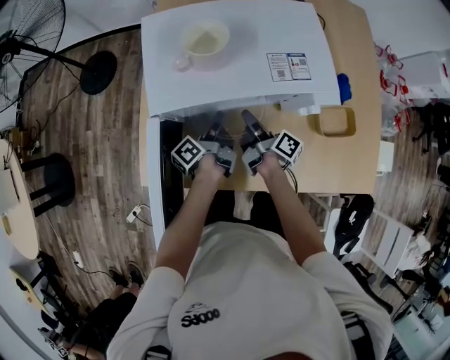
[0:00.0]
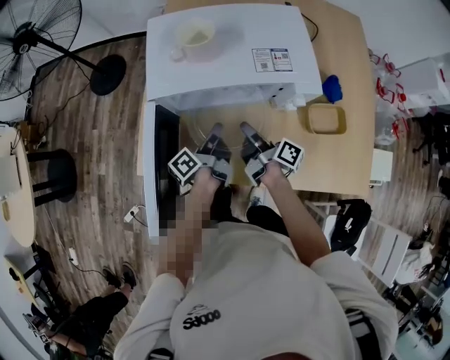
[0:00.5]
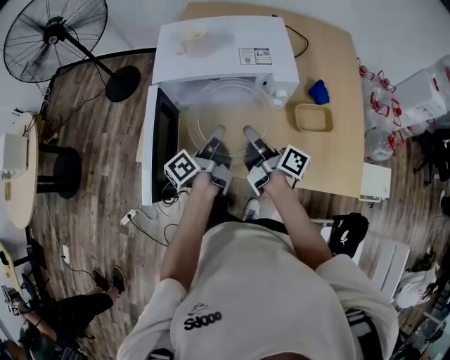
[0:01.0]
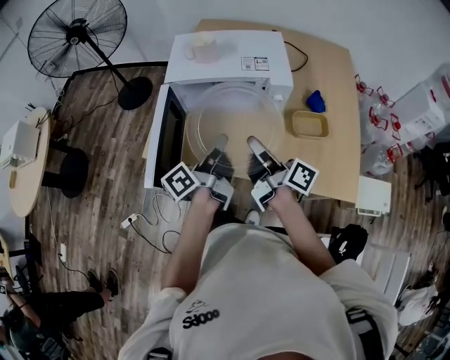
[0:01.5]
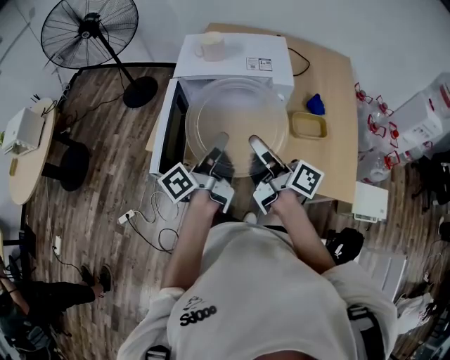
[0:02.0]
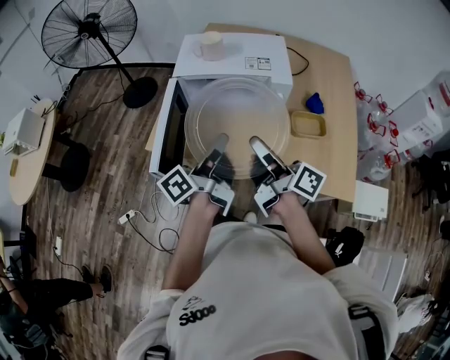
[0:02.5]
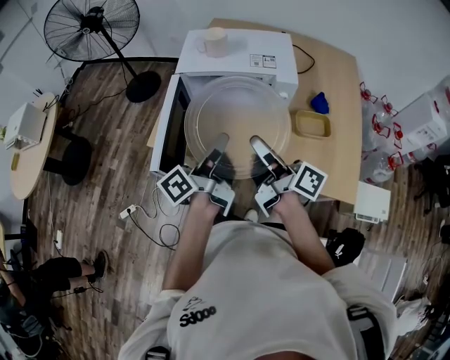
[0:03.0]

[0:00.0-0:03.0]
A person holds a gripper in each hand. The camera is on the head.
0:00.0 to 0:01.5: The grippers both shift backward and upward by roughly 35 cm. The right gripper swivels roughly 30 degrees. The left gripper changes its angle by approximately 20 degrees.
0:01.5 to 0:03.0: The left gripper travels backward by about 5 cm. Meanwhile the right gripper changes place by roughly 5 cm.

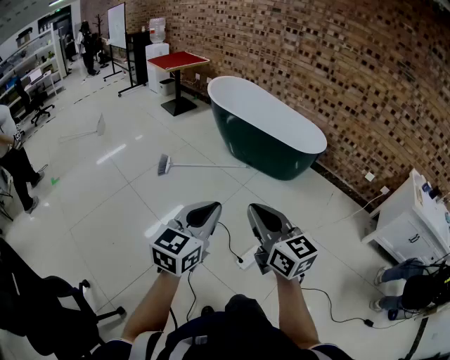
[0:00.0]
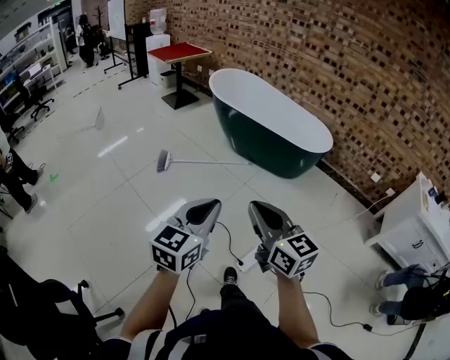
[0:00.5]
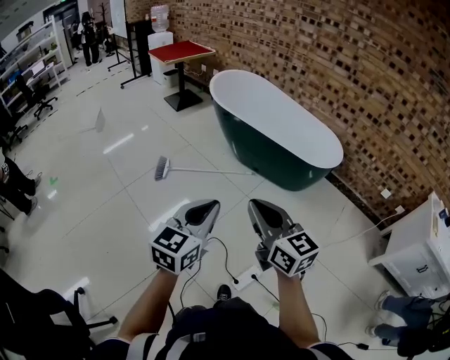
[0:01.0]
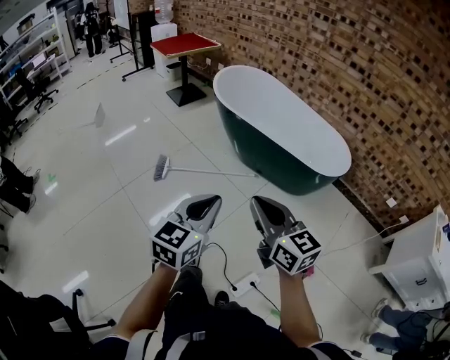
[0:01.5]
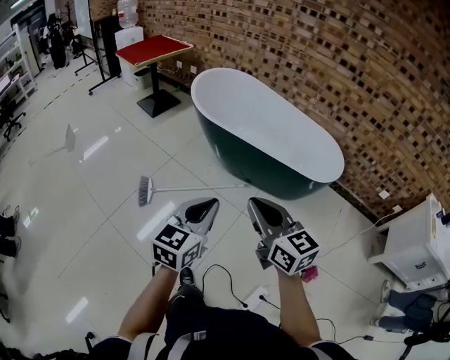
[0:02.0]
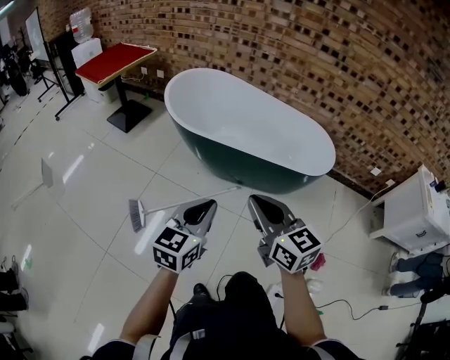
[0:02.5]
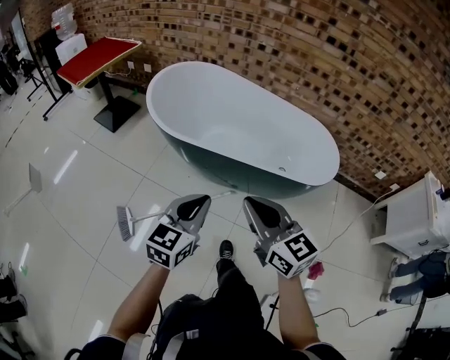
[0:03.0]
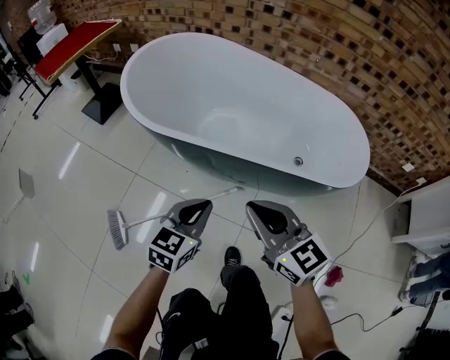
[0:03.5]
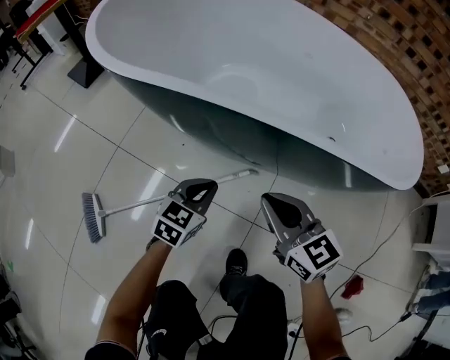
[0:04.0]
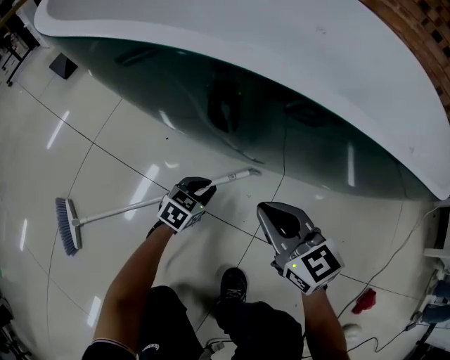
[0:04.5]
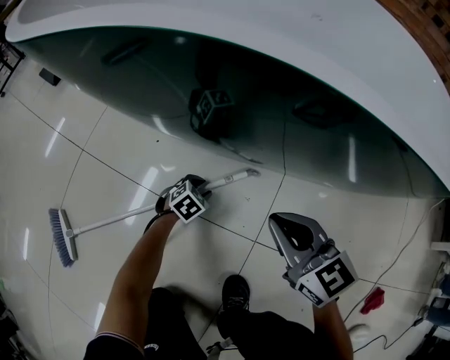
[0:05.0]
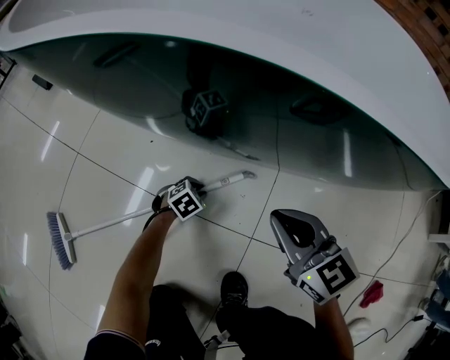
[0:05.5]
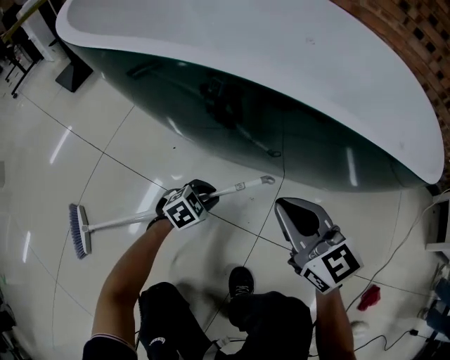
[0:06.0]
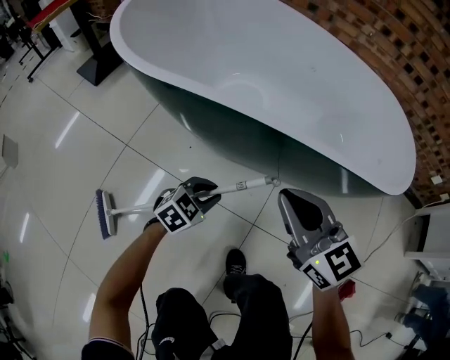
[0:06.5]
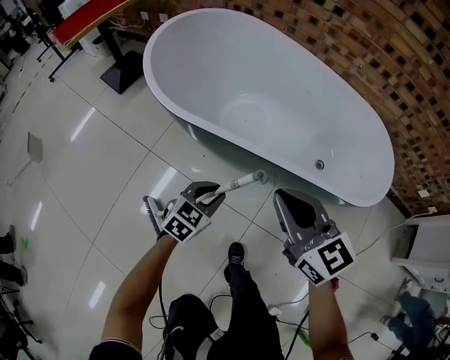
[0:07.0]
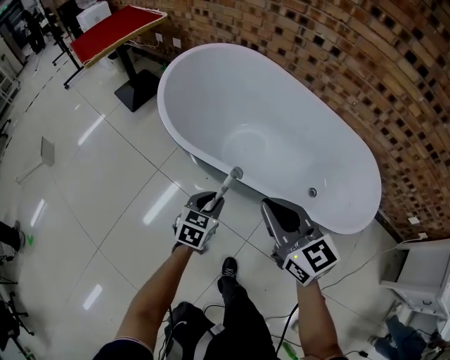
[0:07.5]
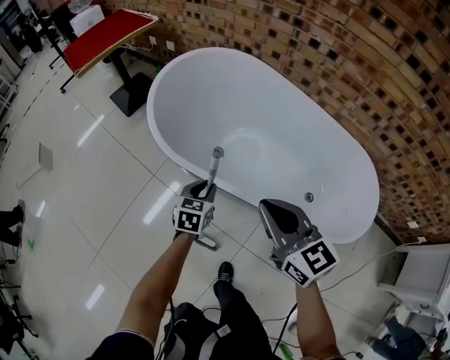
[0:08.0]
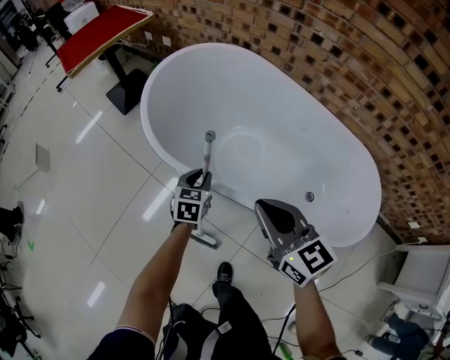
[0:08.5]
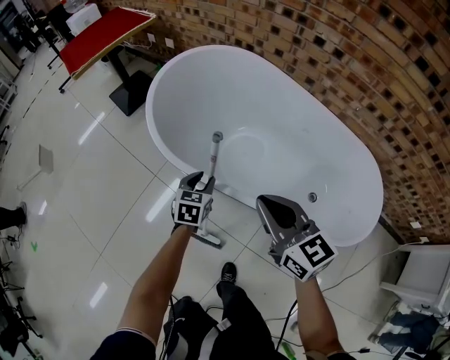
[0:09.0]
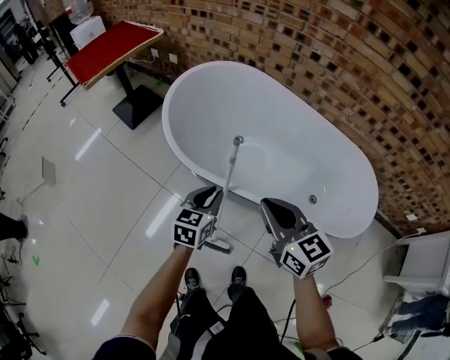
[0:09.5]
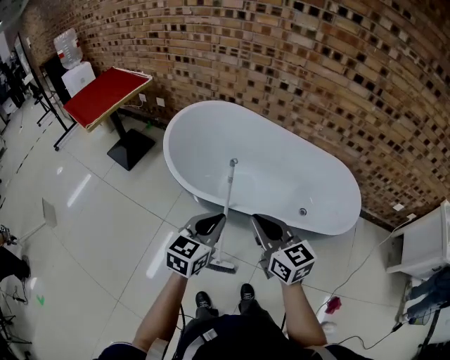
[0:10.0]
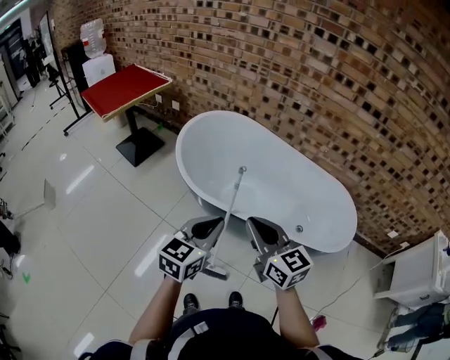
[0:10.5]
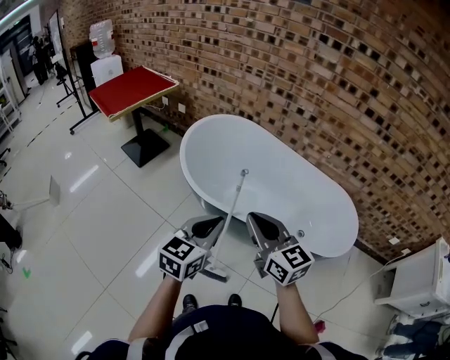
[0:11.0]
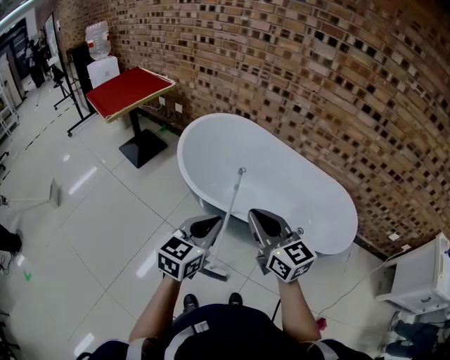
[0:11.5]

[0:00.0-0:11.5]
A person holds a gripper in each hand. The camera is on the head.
0:00.0 to 0:02.0: Both grippers are carried forward, roughly 50 cm.
0:02.0 to 0:04.0: Both grippers are carried forward, about 40 cm. Both grippers travel together downward, about 60 cm. The left gripper changes its angle by about 30 degrees.
0:04.0 to 0:06.0: The right gripper heads downward, covering approximately 10 cm; the left gripper shifts about 25 cm downward, and rotates about 30 degrees.
0:06.0 to 0:07.5: The grippers both shift upward by some 50 cm. The left gripper rotates approximately 50 degrees.
0:07.5 to 0:09.5: The right gripper travels forward by about 5 cm, while the left gripper travels upward and forward by roughly 10 cm.
0:09.5 to 0:11.5: The left gripper travels upward and backward by approximately 25 cm, while the right gripper is displaced upward, backward and to the left by approximately 15 cm.

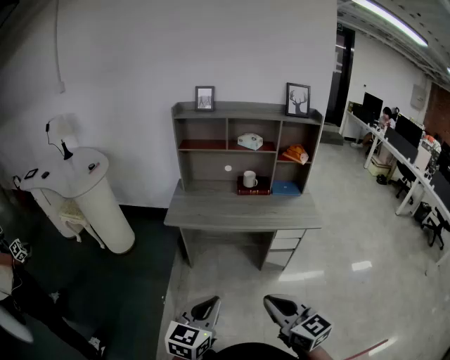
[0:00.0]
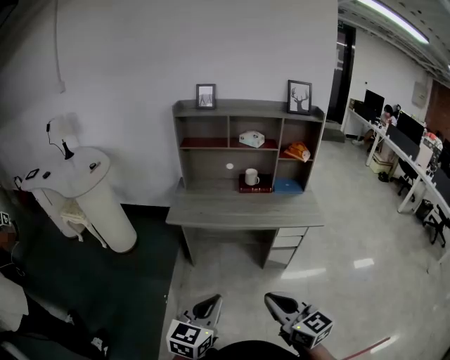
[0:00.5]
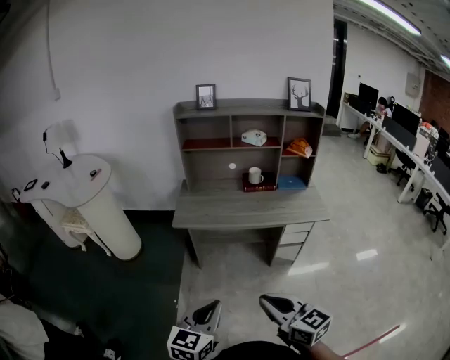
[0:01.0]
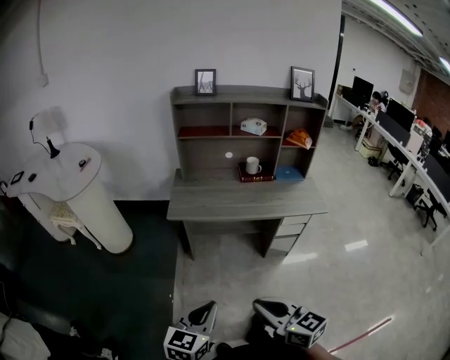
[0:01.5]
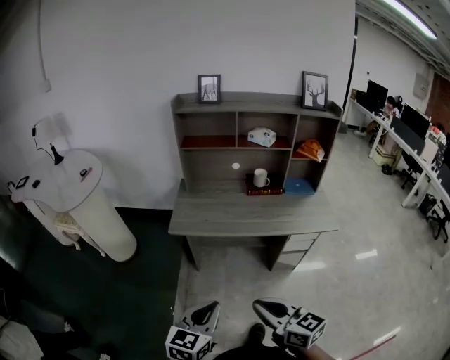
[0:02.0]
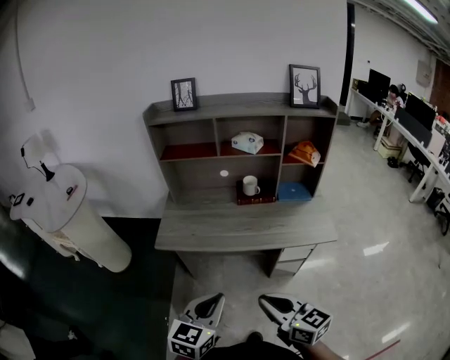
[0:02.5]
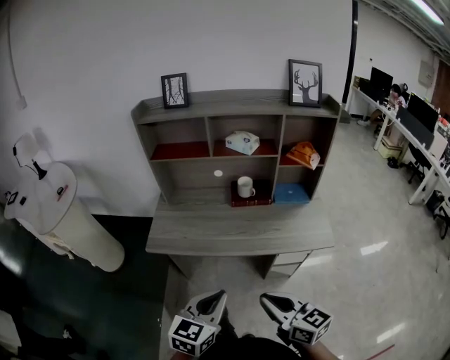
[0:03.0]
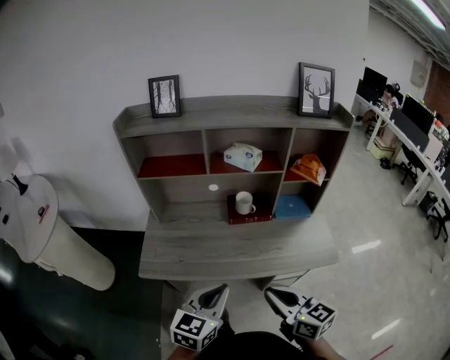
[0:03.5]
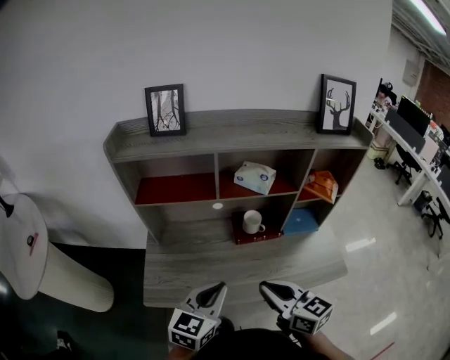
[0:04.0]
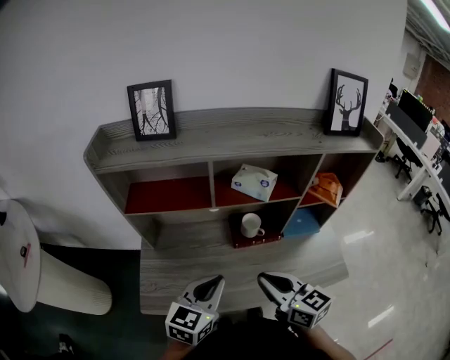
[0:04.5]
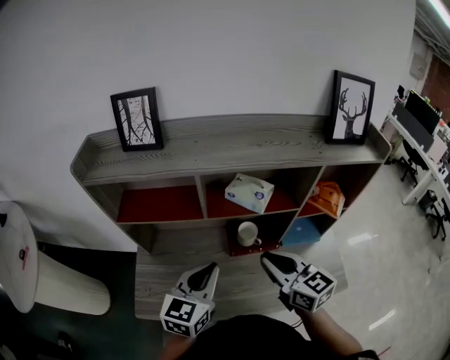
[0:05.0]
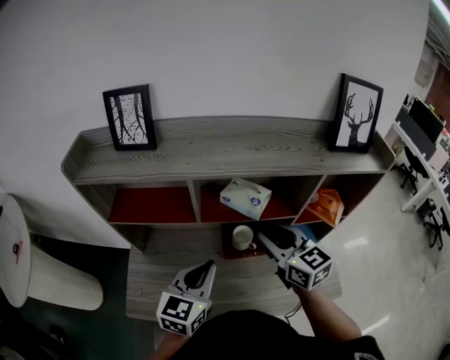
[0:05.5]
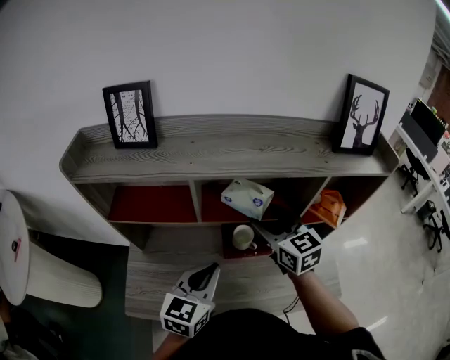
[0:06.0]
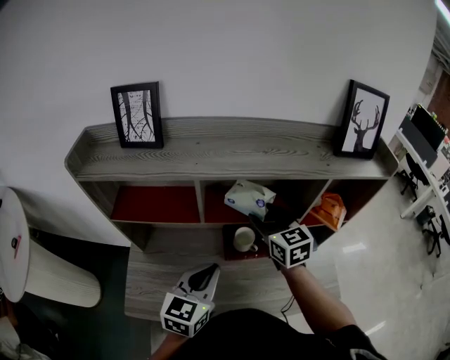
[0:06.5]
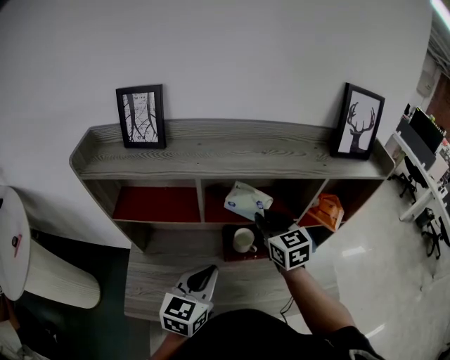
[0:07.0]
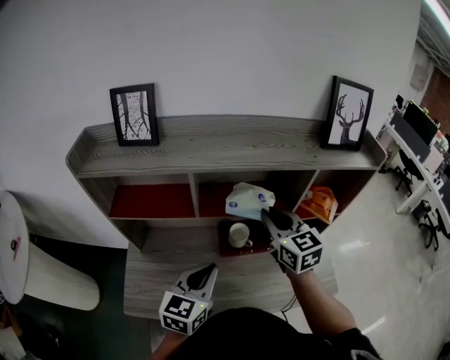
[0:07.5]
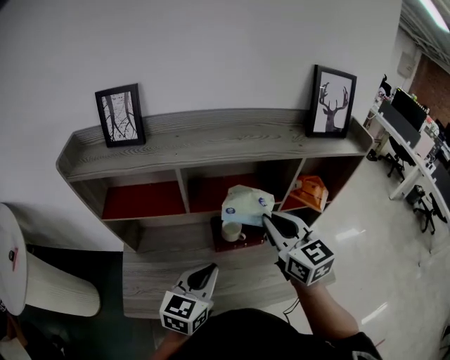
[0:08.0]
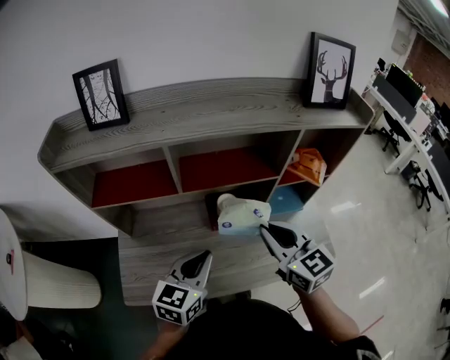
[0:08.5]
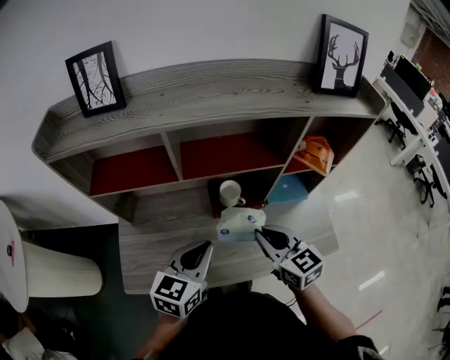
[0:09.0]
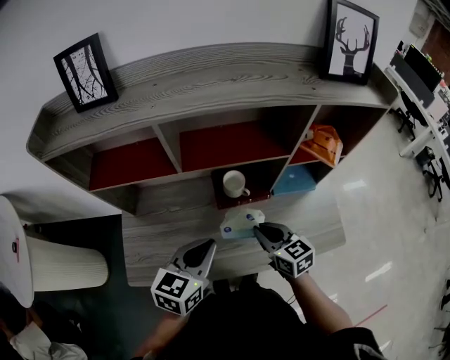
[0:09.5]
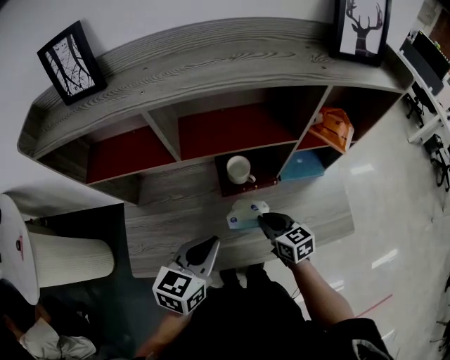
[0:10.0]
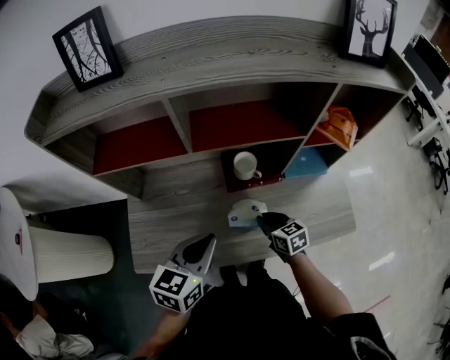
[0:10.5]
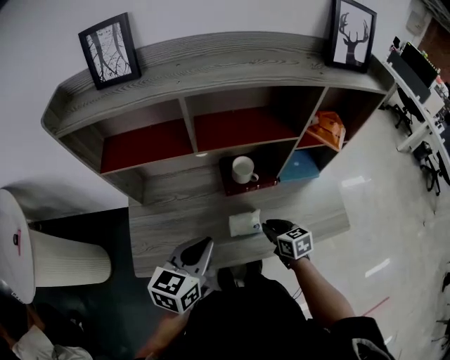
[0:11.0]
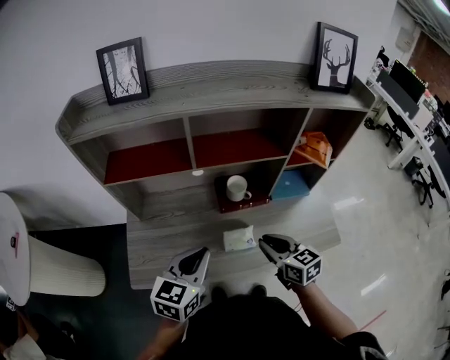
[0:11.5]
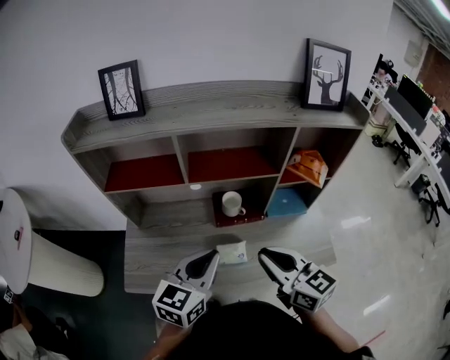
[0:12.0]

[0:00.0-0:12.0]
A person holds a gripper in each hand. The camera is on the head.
0:00.0 to 0:02.0: The two grippers go approximately 15 cm forward and to the left.
0:02.0 to 0:04.0: The two grippers travel together, forward, approximately 40 cm.
0:04.0 to 0:06.0: The right gripper shifts about 30 cm forward, rotates some 20 degrees, and opens; the left gripper travels forward by approximately 15 cm.
0:06.0 to 0:08.0: The right gripper shifts about 10 cm backward and upward, and closes up.
0:08.0 to 0:10.0: The left gripper goes about 5 cm downward; the right gripper goes roughly 30 cm downward, and rotates approximately 30 degrees.
0:10.0 to 0:12.0: The left gripper is displaced upward by about 10 cm. Meanwhile the right gripper heads upward and backward, covering approximately 25 cm, and turns by about 20 degrees.
